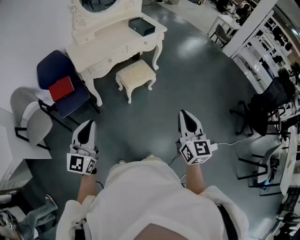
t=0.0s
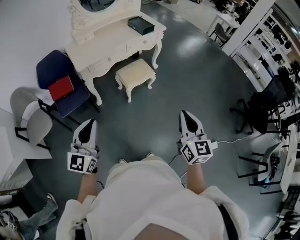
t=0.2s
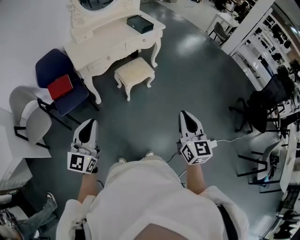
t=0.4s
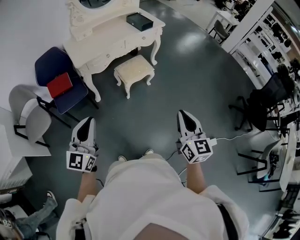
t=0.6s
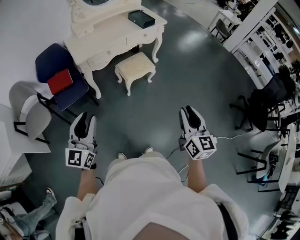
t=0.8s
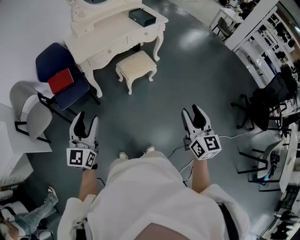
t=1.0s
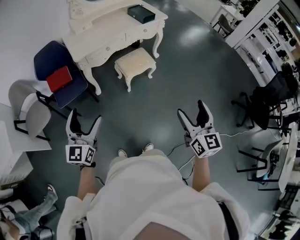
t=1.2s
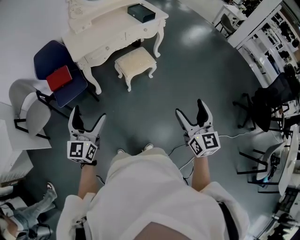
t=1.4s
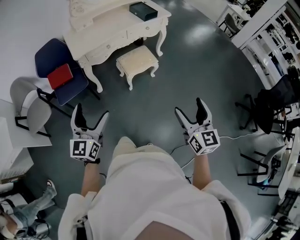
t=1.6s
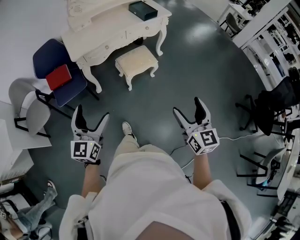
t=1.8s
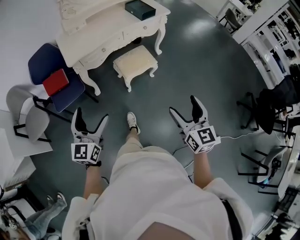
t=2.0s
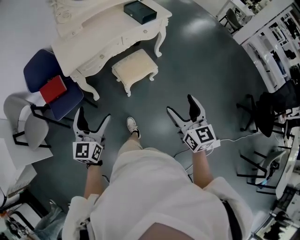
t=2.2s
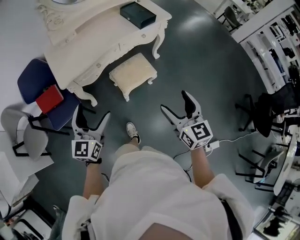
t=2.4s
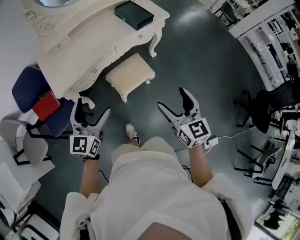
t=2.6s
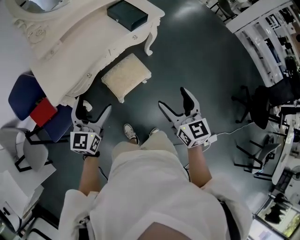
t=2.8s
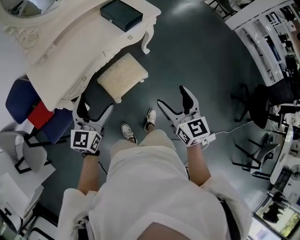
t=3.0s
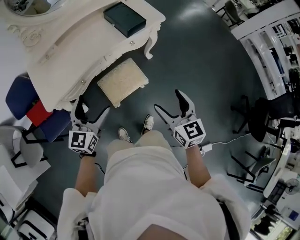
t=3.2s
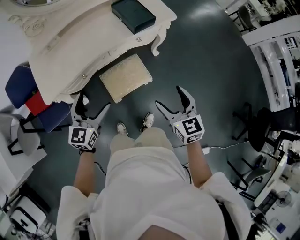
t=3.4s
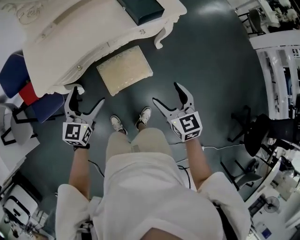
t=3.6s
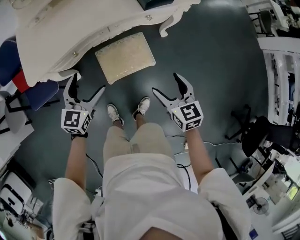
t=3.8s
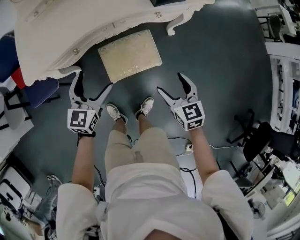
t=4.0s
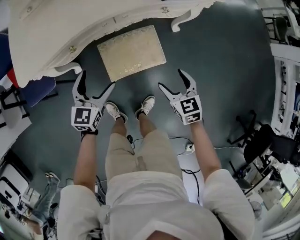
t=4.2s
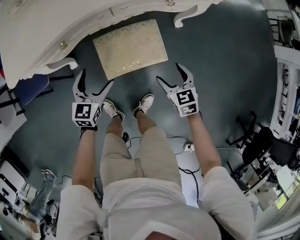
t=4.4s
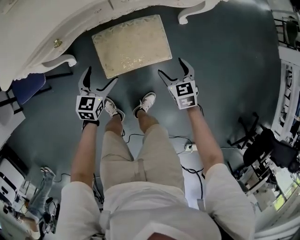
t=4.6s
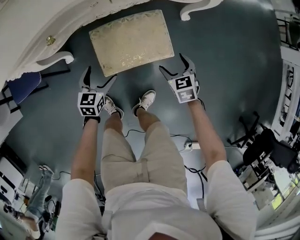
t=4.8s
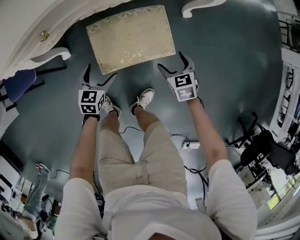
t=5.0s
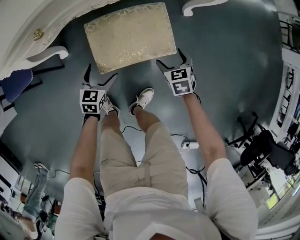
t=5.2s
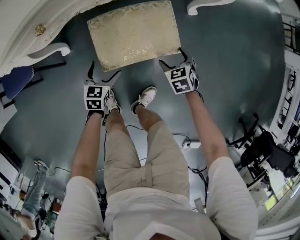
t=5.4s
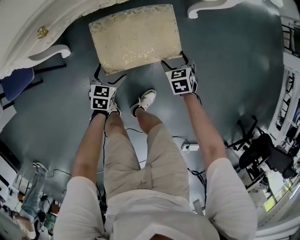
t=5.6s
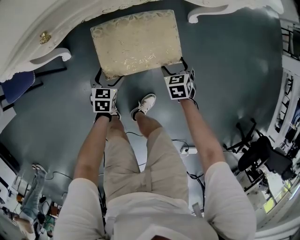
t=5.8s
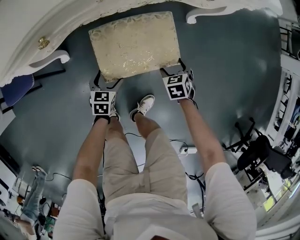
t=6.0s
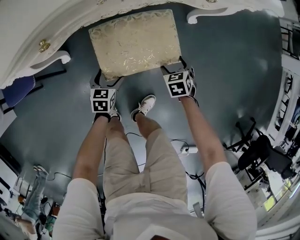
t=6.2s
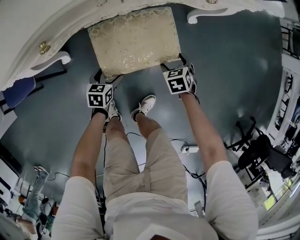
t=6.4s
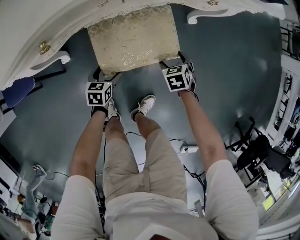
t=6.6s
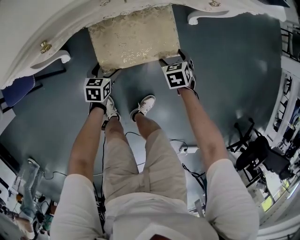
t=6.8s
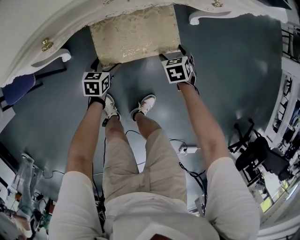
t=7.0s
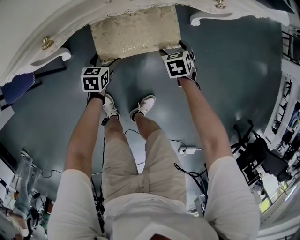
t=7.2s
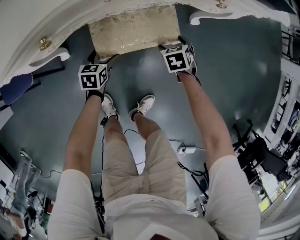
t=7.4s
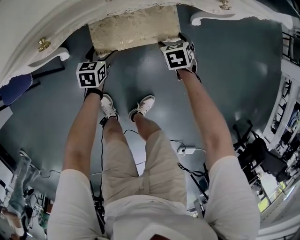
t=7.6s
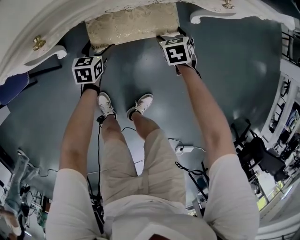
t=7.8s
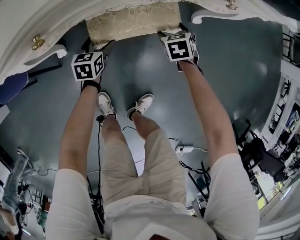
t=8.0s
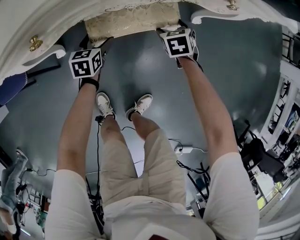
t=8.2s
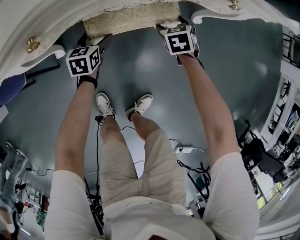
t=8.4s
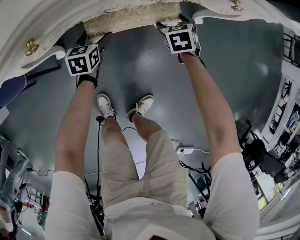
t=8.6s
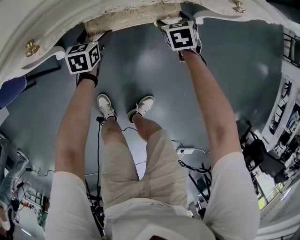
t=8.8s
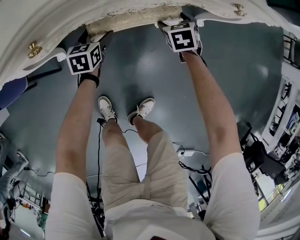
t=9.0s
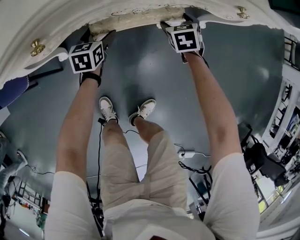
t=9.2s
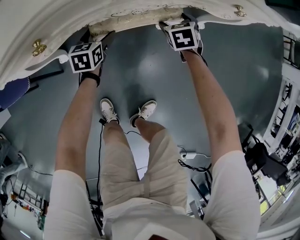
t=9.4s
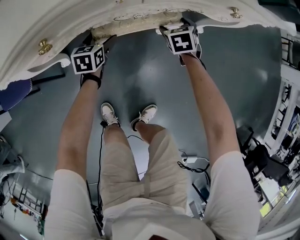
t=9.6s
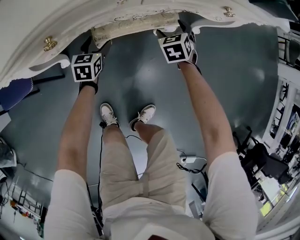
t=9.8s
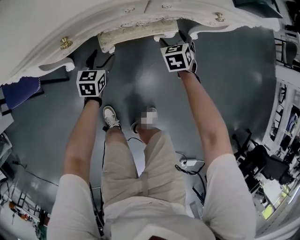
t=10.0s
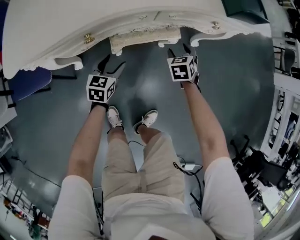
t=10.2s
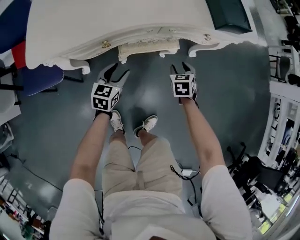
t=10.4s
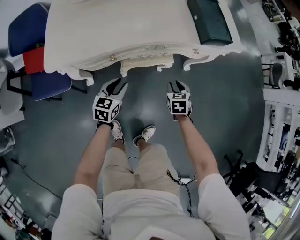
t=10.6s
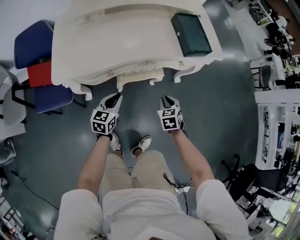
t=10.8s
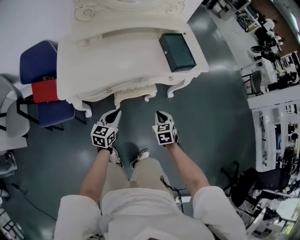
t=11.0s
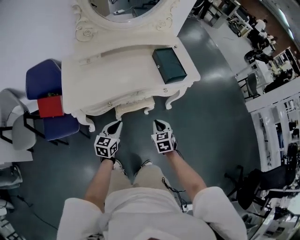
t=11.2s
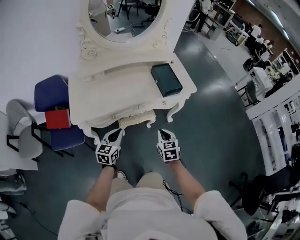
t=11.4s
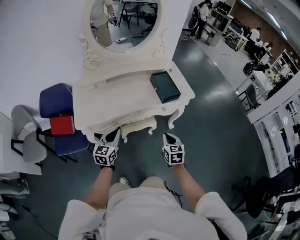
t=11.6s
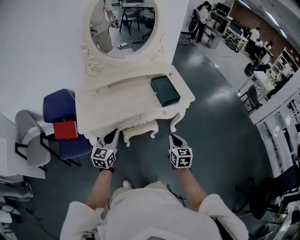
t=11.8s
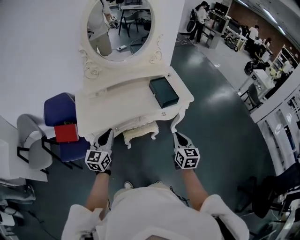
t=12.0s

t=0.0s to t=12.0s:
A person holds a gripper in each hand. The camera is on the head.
t=0.0s to t=1.6s: The left gripper ends up some 10 cm from where it was, and opens its fingers. The right gripper shifts roughly 5 cm to the right, and opens up.
t=1.6s to t=3.0s: Both grippers are carried forward, some 40 cm.
t=3.0s to t=4.4s: The right gripper heads downward and forward, covering some 40 cm, and rotates some 40 degrees, while the left gripper heads downward, covering roughly 35 cm, and swivels approximately 30 degrees.
t=4.4s to t=6.0s: The grippers both shift downward by approximately 25 cm. The right gripper swivels some 20 degrees, while the left gripper turns by about 20 degrees.
t=6.0s to t=7.6s: Both grippers move forward and to the left, some 15 cm.
t=7.6s to t=9.0s: Both grippers move forward, approximately 10 cm.
t=9.0s to t=10.4s: The grippers both shift upward and backward by some 20 cm. The right gripper closes its fingers. The left gripper closes.
t=10.4s to t=12.0s: The grippers both shift upward by approximately 50 cm. The left gripper turns by some 30 degrees, and closes. Meanwhile the right gripper tips its fingers upward by some 40 degrees, and closes its fingers.

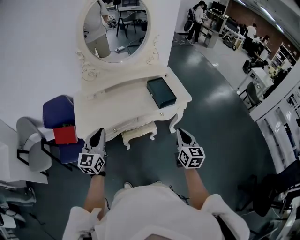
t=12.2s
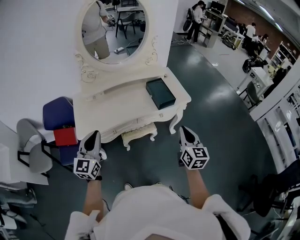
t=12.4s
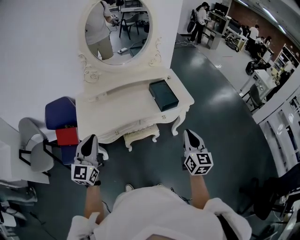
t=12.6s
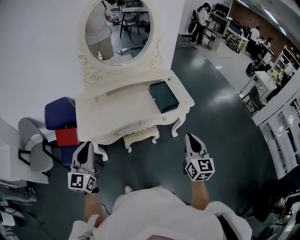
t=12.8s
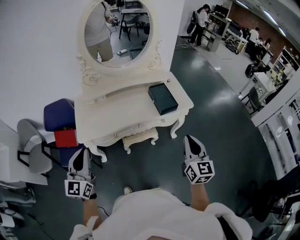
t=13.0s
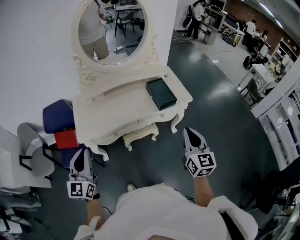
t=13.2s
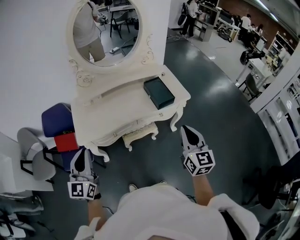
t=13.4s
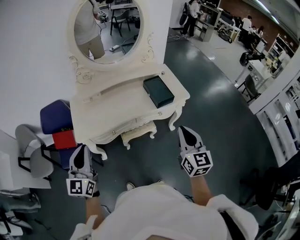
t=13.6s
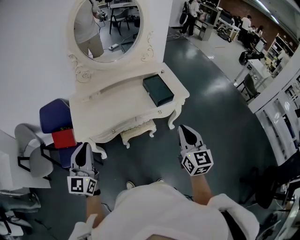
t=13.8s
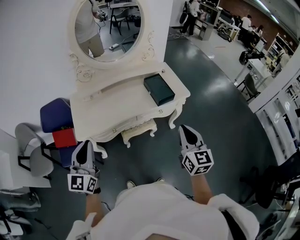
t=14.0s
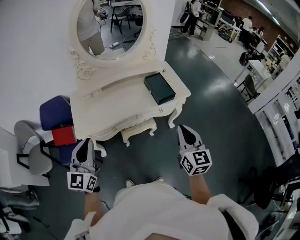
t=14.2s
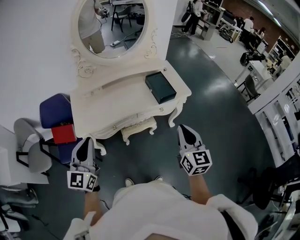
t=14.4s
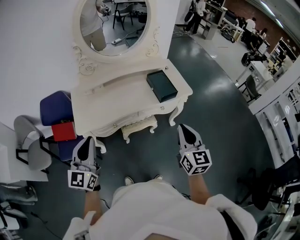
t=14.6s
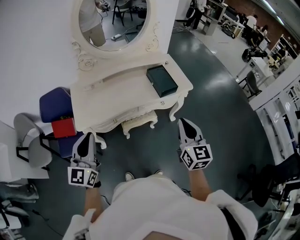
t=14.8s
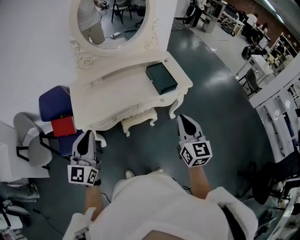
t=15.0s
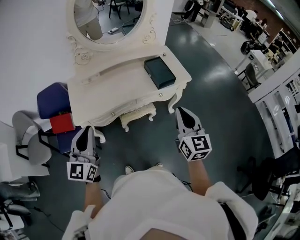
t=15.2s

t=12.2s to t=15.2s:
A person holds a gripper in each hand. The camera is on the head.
t=12.2s to t=13.8s: The left gripper shifts approximately 10 cm upward and backward; the right gripper travels upward by roughly 10 cm.
t=13.8s to t=15.2s: The grippers make only small movements.

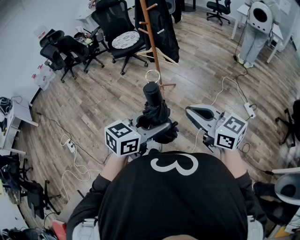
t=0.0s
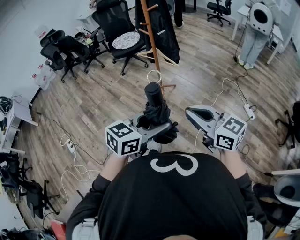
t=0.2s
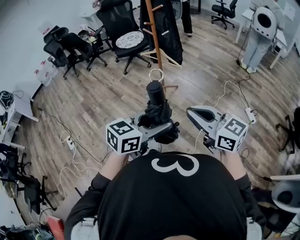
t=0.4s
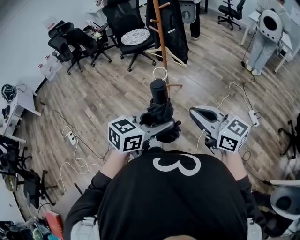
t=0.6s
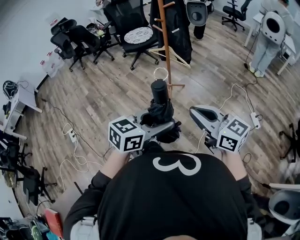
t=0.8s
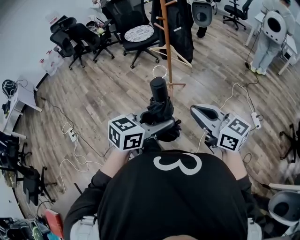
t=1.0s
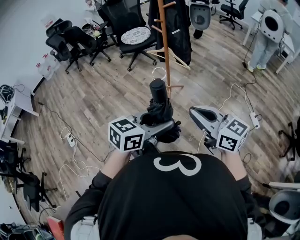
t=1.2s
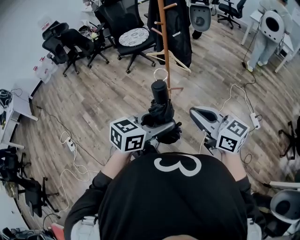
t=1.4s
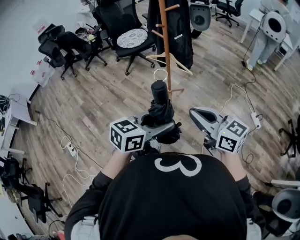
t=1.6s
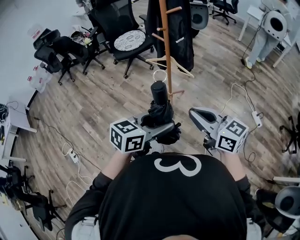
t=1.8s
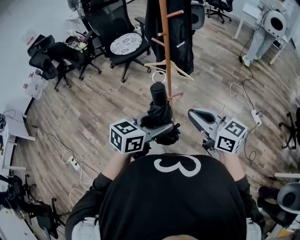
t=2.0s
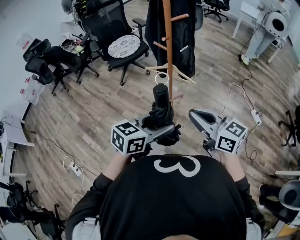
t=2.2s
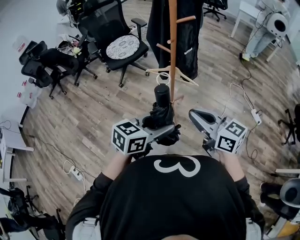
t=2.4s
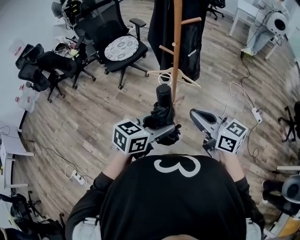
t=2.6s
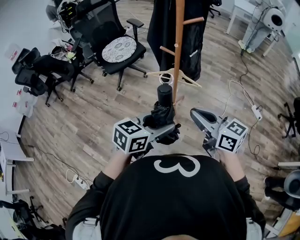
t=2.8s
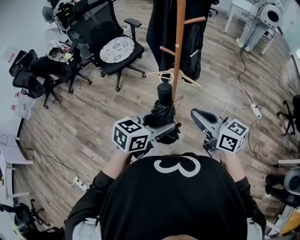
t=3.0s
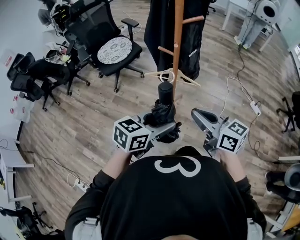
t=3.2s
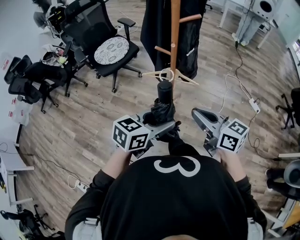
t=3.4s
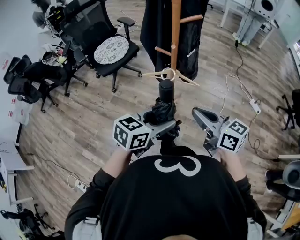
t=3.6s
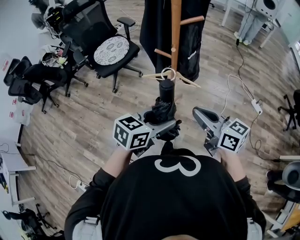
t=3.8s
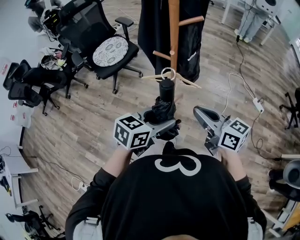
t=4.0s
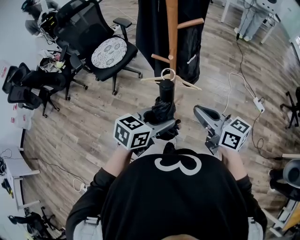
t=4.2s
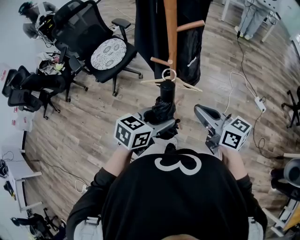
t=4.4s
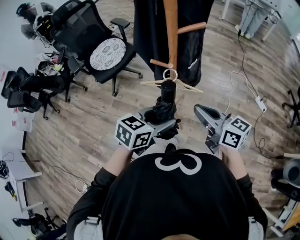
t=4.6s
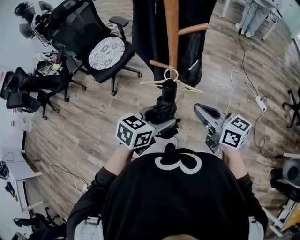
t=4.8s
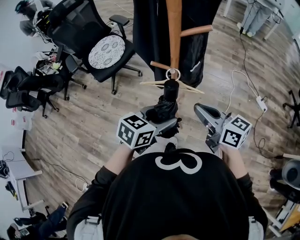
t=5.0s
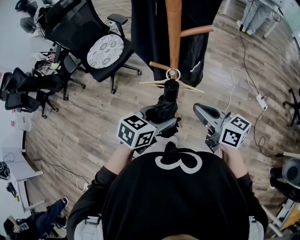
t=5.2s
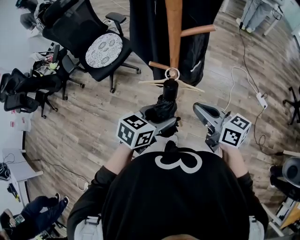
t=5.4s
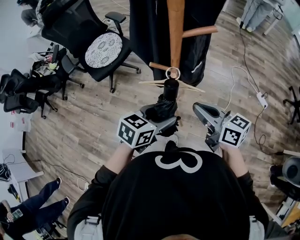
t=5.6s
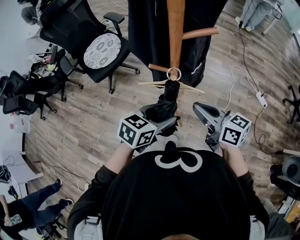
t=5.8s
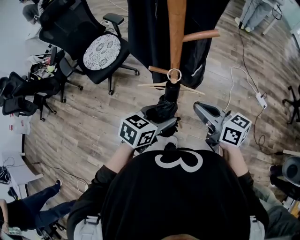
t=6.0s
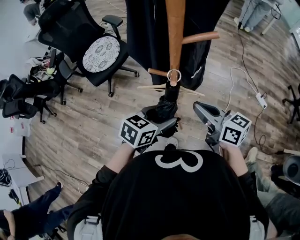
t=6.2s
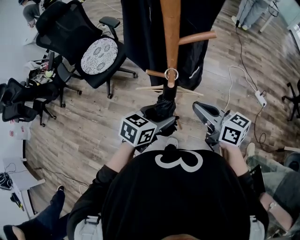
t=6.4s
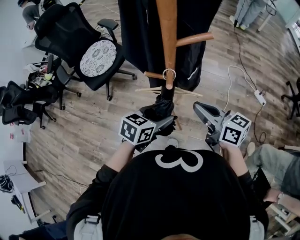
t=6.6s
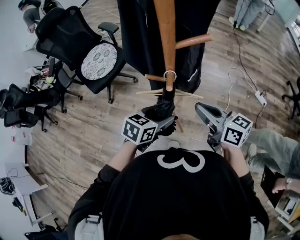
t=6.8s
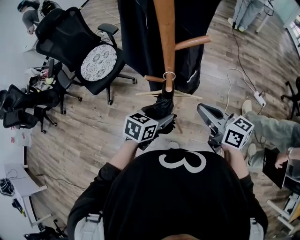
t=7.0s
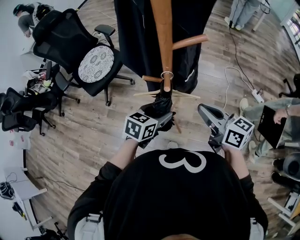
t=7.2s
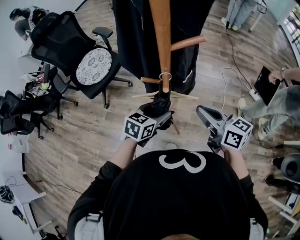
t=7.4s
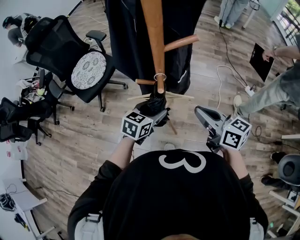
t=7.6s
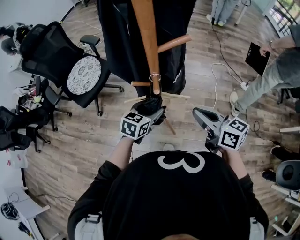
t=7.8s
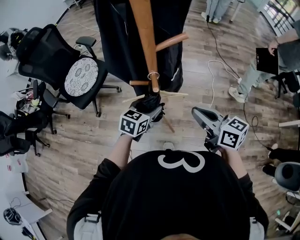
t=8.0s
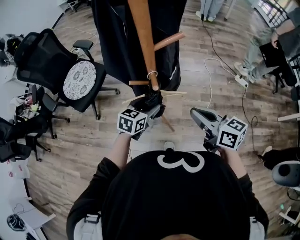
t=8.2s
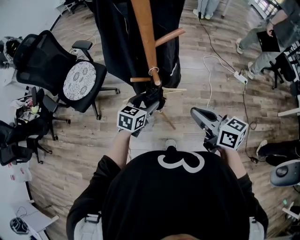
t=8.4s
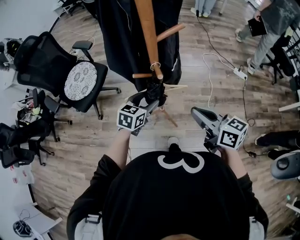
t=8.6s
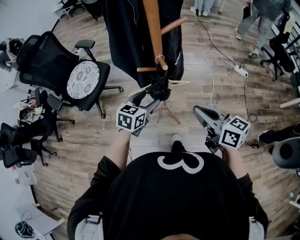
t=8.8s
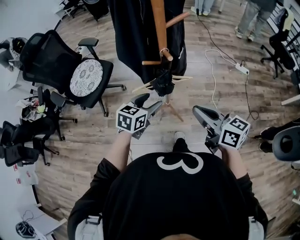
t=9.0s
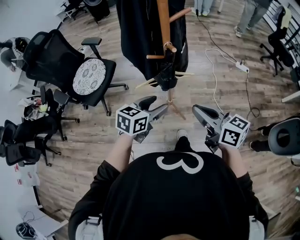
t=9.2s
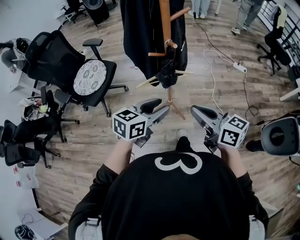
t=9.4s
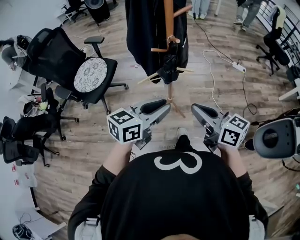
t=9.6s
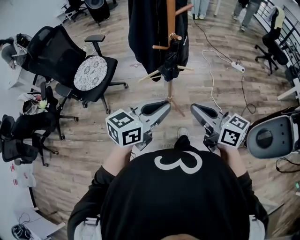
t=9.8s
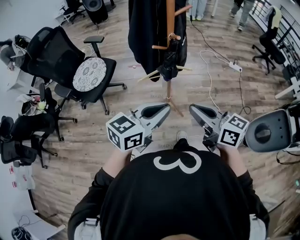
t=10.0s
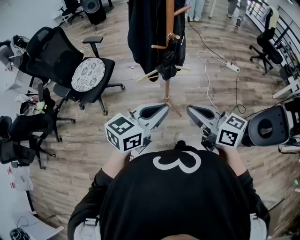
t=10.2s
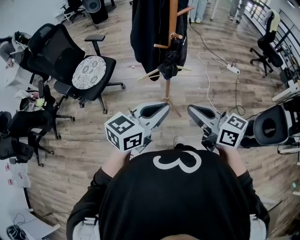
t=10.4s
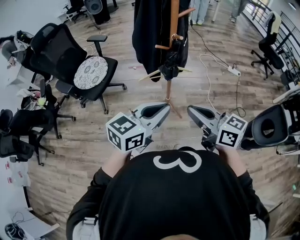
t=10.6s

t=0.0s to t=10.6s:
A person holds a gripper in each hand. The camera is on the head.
t=0.0s to t=1.6s: Both grippers move forward and to the left, about 15 cm.
t=1.6s to t=3.0s: The grippers both shift forward and to the left by roughly 30 cm.
t=3.0s to t=4.6s: Both grippers move forward, approximately 15 cm.
t=4.6s to t=6.0s: Both grippers move forward, approximately 10 cm.
t=6.0s to t=7.6s: The left gripper travels forward and downward by roughly 10 cm.
t=7.6s to t=9.0s: Both grippers travel together backward and to the left, some 15 cm.
t=9.0s to t=10.6s: The left gripper is displaced backward and upward by about 30 cm, changes its angle by some 30 degrees, and closes up. Meanwhile the right gripper heads backward and to the left, covering approximately 20 cm.
